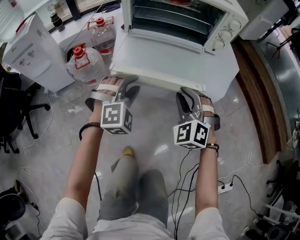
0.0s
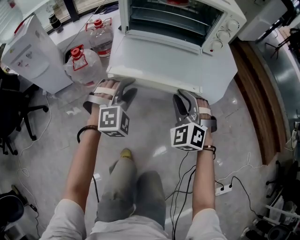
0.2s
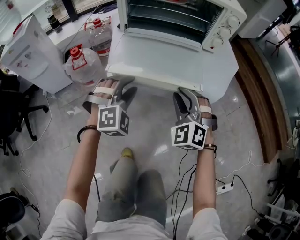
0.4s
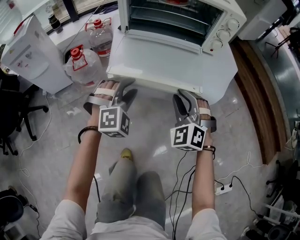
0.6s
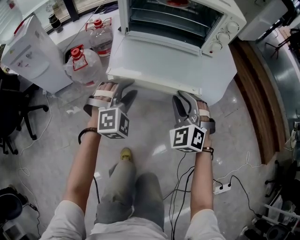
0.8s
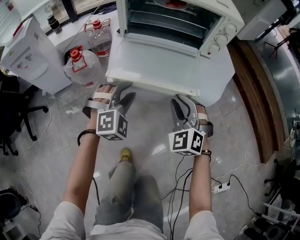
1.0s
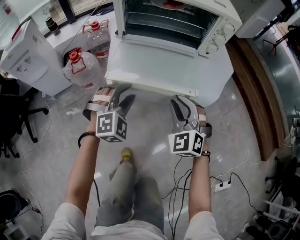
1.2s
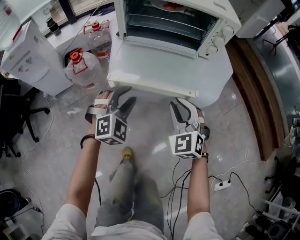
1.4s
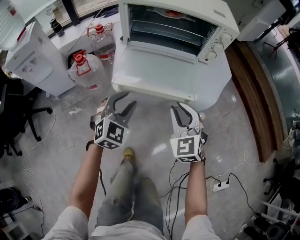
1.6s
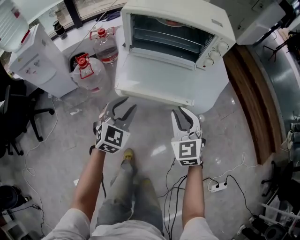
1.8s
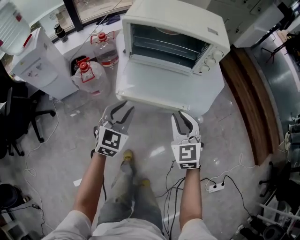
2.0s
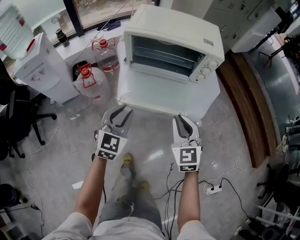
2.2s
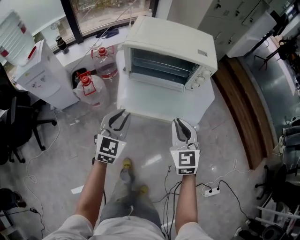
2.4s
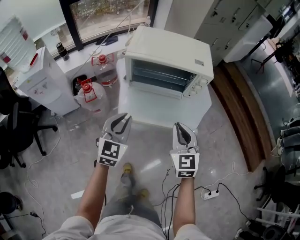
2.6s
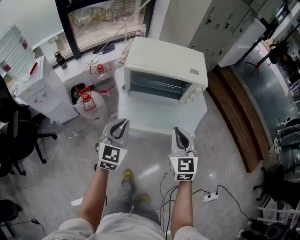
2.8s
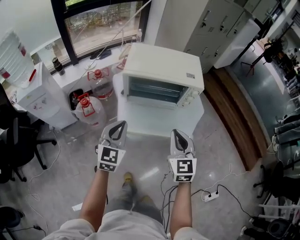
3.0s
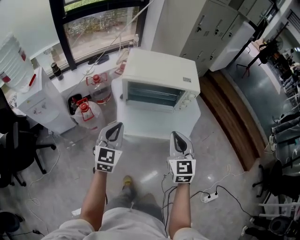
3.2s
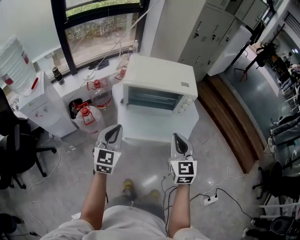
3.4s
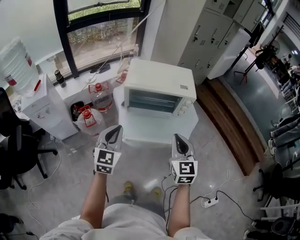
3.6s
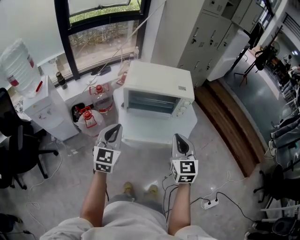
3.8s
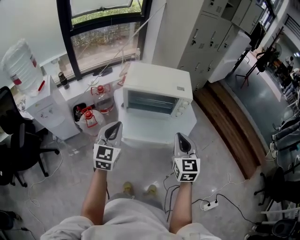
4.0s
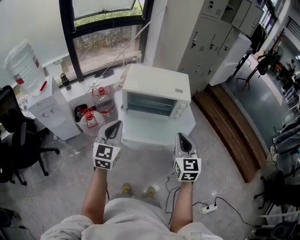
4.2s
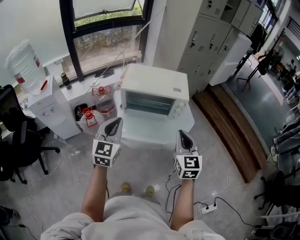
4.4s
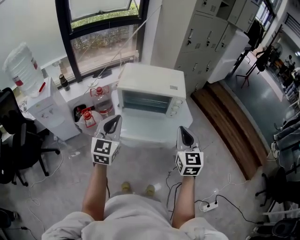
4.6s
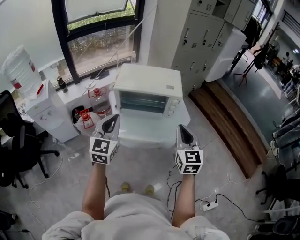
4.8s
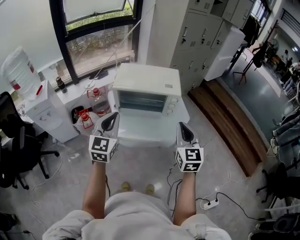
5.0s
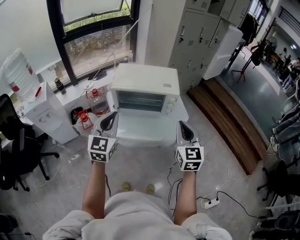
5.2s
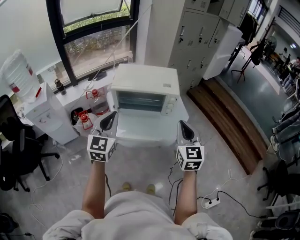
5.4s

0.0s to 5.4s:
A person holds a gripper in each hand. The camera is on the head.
0.0s to 1.4s: The grippers make only small movements.
1.4s to 2.8s: Both grippers move upward, roughly 25 cm. The left gripper turns by some 40 degrees, and closes its fingers. The right gripper turns by approximately 30 degrees.
2.8s to 4.0s: Both grippers move upward, roughly 10 cm.
4.0s to 5.4s: The left gripper moves to the right and upward, some 10 cm, while the right gripper moves to the right, approximately 10 cm.

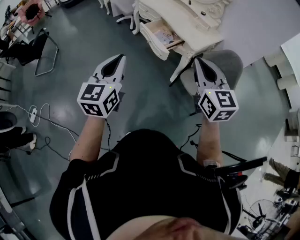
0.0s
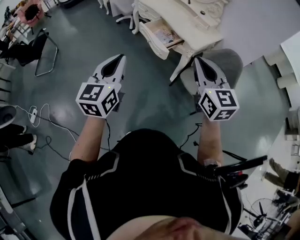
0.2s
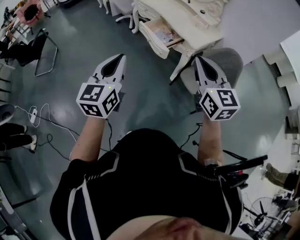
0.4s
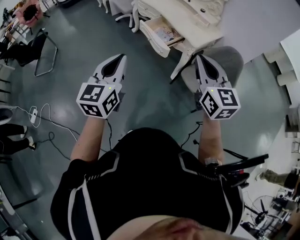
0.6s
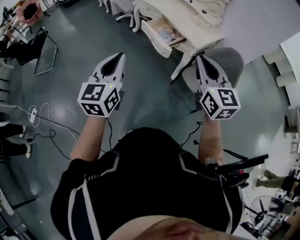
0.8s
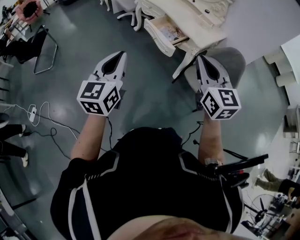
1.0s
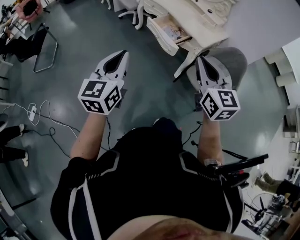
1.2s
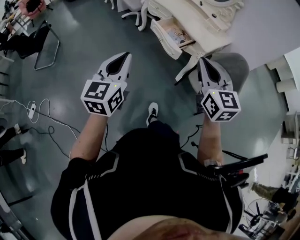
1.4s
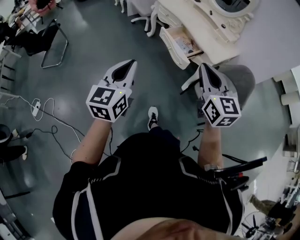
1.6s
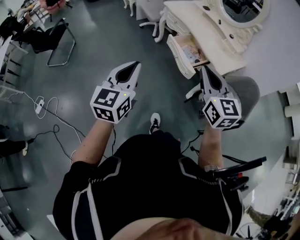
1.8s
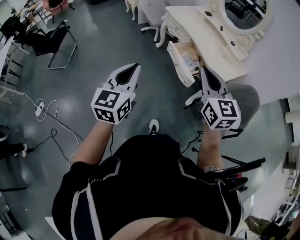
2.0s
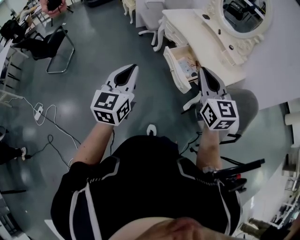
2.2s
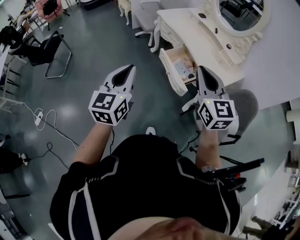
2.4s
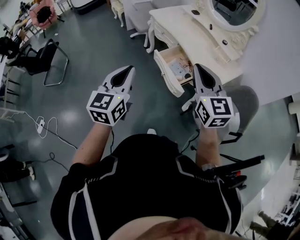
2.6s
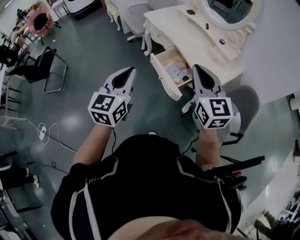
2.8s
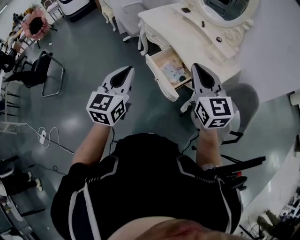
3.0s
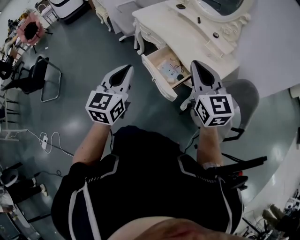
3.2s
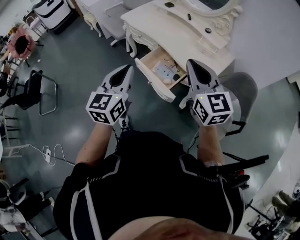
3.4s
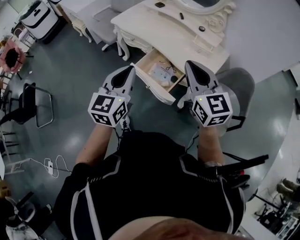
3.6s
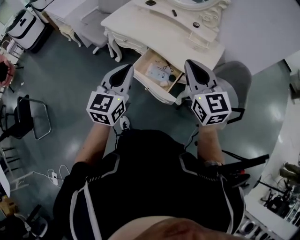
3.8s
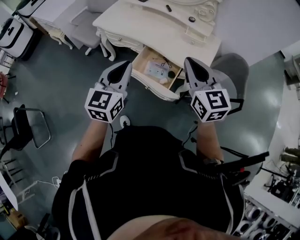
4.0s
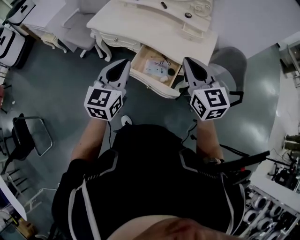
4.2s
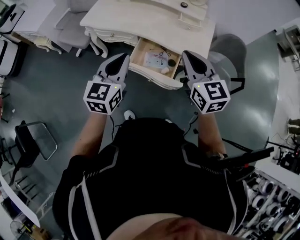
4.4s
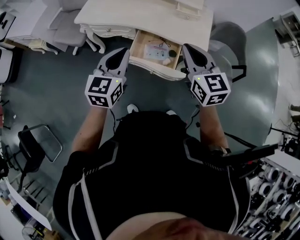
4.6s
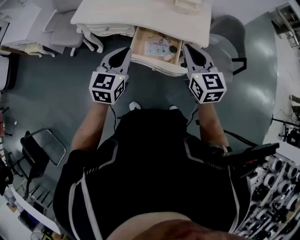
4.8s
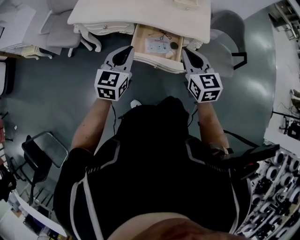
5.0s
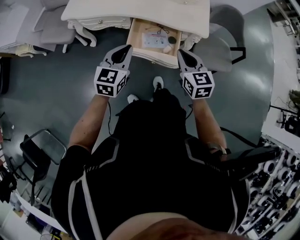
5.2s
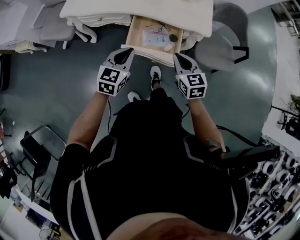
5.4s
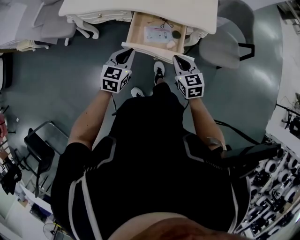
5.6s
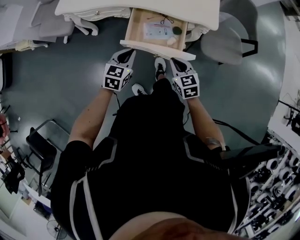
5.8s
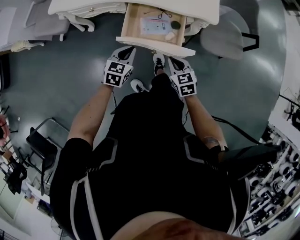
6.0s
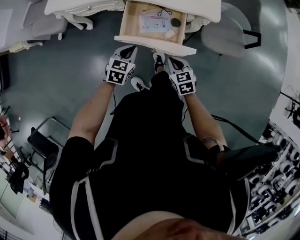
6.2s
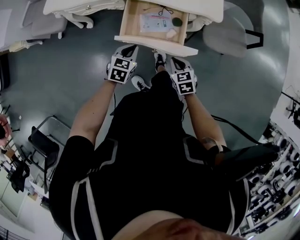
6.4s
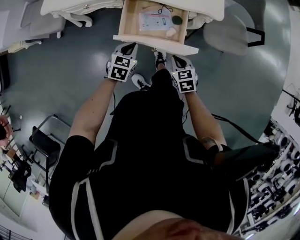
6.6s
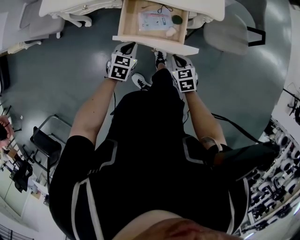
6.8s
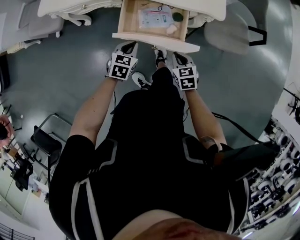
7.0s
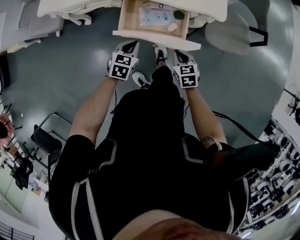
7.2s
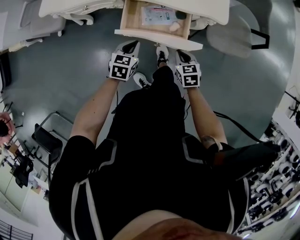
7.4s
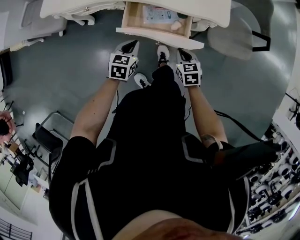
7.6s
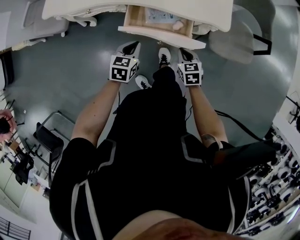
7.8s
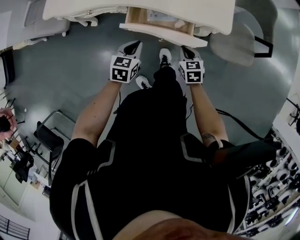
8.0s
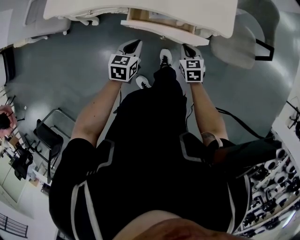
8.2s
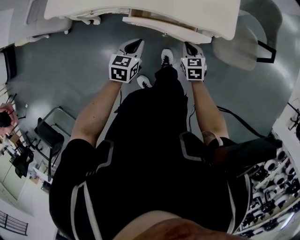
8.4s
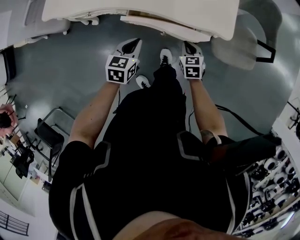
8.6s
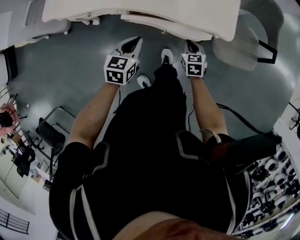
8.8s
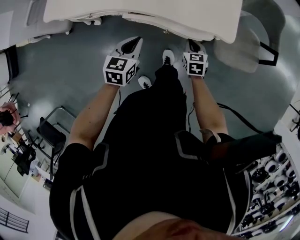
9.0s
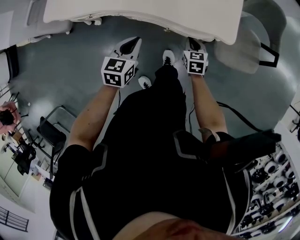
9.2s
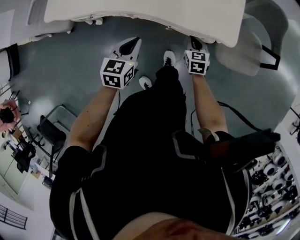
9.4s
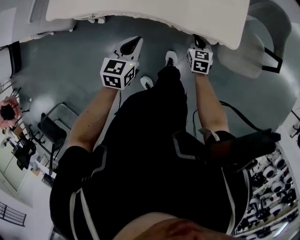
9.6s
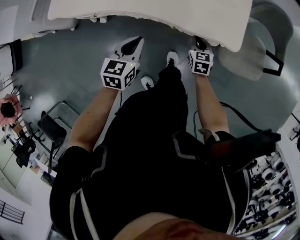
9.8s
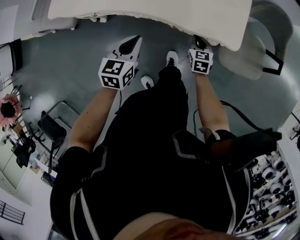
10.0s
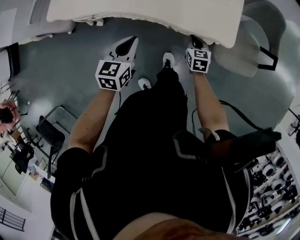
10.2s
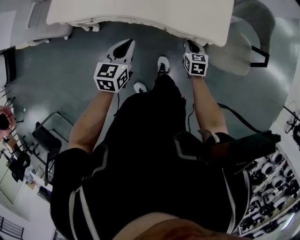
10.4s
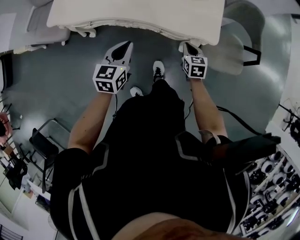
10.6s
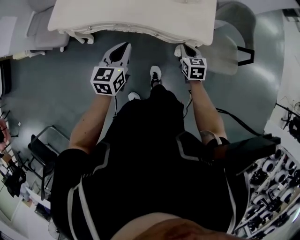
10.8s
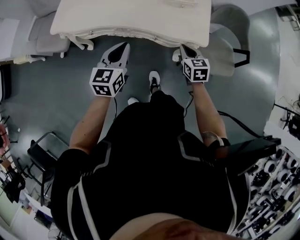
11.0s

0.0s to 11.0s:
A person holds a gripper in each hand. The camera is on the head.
0.0s to 1.6s: Both grippers move to the left, about 10 cm.
1.6s to 3.2s: Both grippers travel together forward and to the right, roughly 30 cm.
3.2s to 4.8s: The right gripper changes place by roughly 20 cm, and changes its angle by some 40 degrees; the left gripper ends up roughly 25 cm from where it was, and turns by approximately 40 degrees.
4.8s to 6.2s: The two grippers go approximately 30 cm downward. The right gripper angles its fingers downward, by about 30 degrees; the left gripper changes its angle by roughly 30 degrees.
6.2s to 7.8s: The grippers both shift forward by approximately 10 cm.
7.8s to 9.4s: The right gripper shifts some 15 cm forward. Meanwhile the left gripper goes some 10 cm forward and upward.
9.4s to 11.0s: The two grippers go some 15 cm upward.

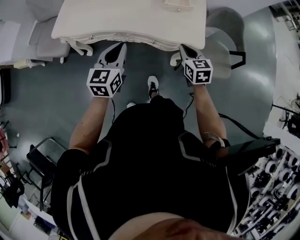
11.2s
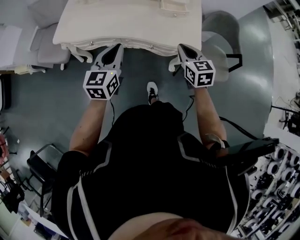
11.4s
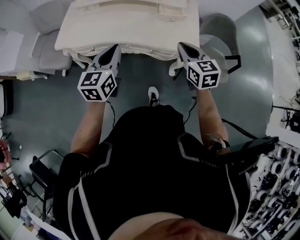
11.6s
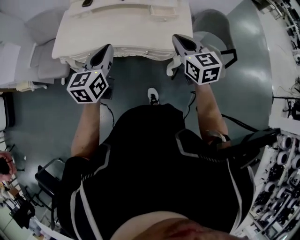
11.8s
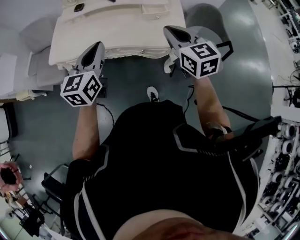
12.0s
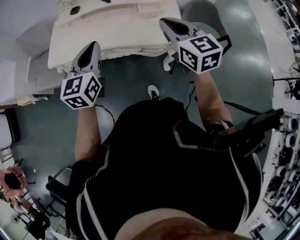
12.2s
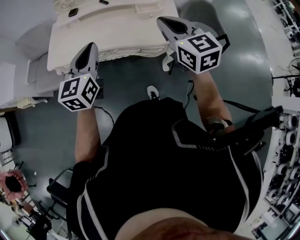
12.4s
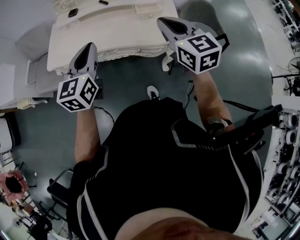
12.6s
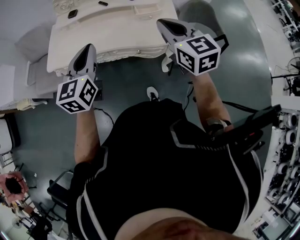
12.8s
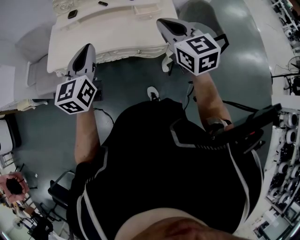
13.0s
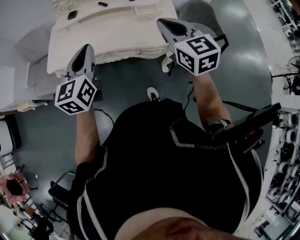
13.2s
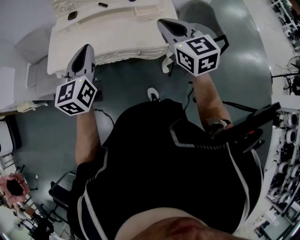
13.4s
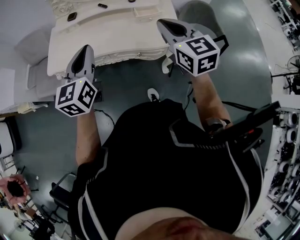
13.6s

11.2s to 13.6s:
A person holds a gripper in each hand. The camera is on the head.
11.2s to 12.4s: The left gripper heads upward, covering roughly 15 cm. The right gripper is displaced upward by approximately 25 cm, and rotates roughly 20 degrees.
12.4s to 13.6s: The grippers move only a little.

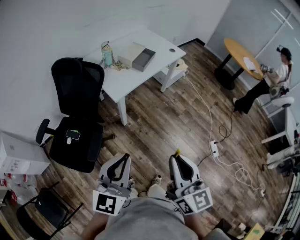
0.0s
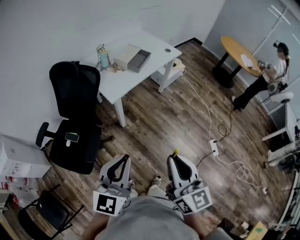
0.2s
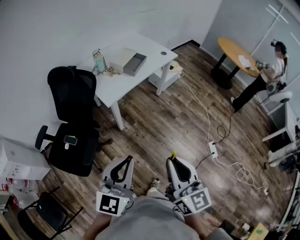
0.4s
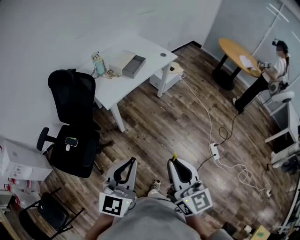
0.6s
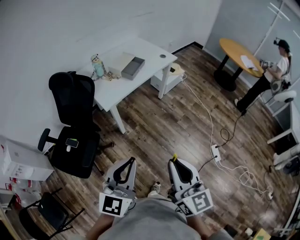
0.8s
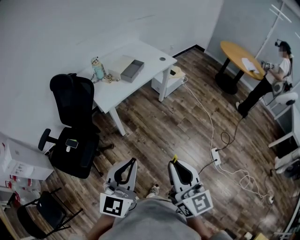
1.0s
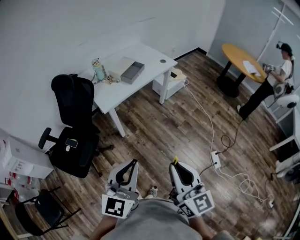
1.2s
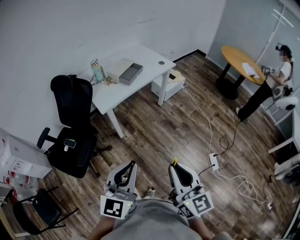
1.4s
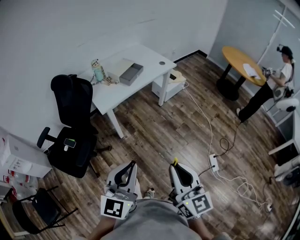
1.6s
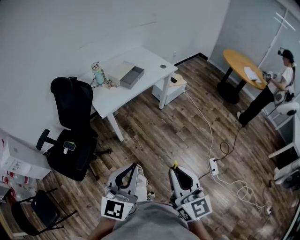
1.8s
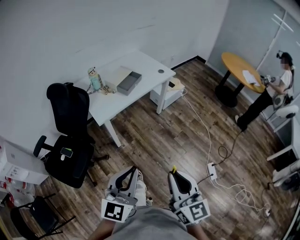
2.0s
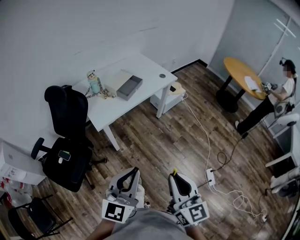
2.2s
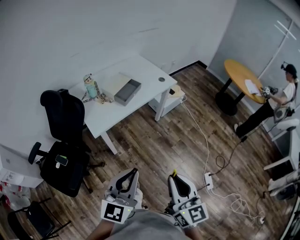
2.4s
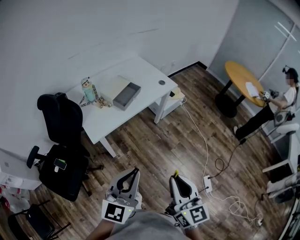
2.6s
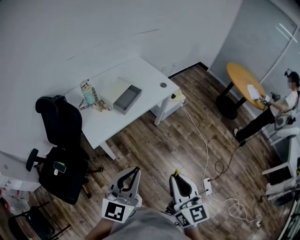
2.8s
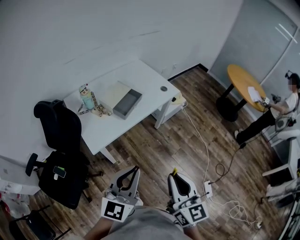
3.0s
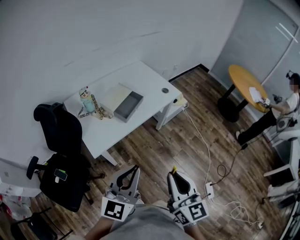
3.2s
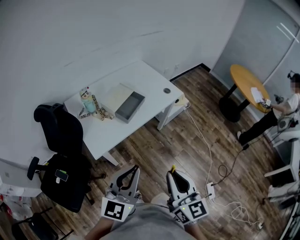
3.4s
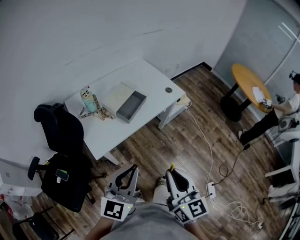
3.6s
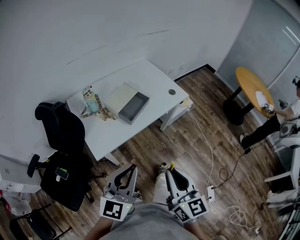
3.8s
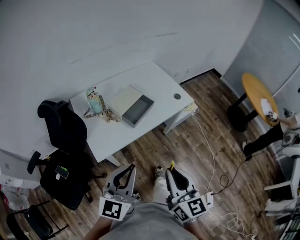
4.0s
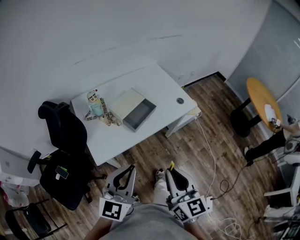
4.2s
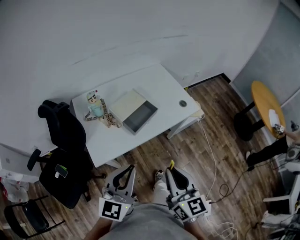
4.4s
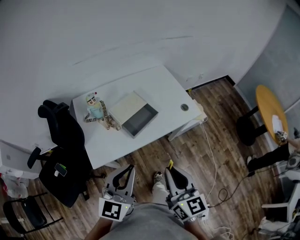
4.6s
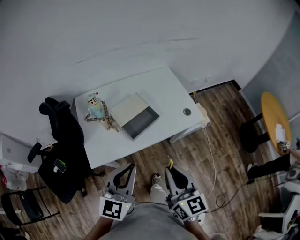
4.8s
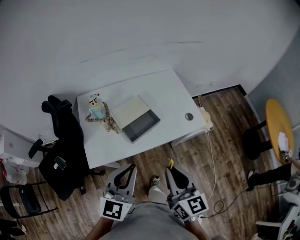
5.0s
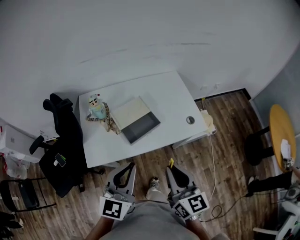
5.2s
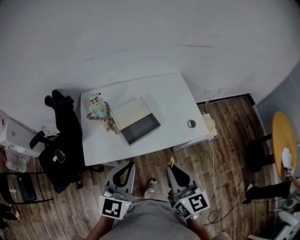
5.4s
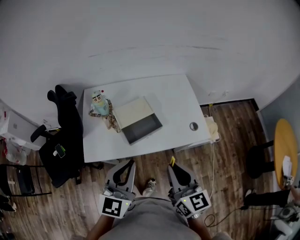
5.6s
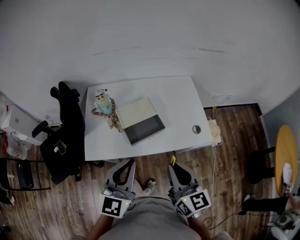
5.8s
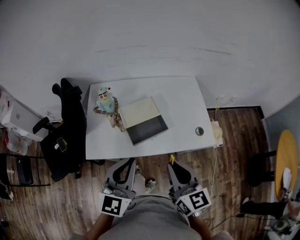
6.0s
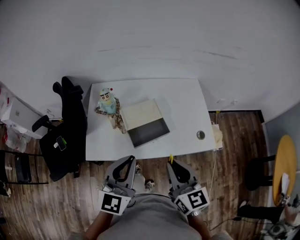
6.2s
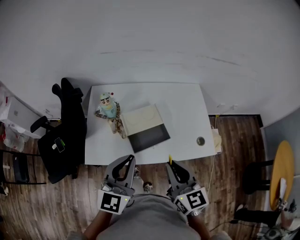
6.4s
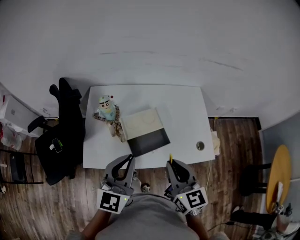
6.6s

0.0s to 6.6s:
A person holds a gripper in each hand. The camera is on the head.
0.0s to 1.6s: The grippers both shift to the right by some 20 cm.
1.6s to 3.2s: Both grippers move forward, roughly 30 cm.
3.2s to 5.0s: The two grippers go about 25 cm forward. The left gripper rotates approximately 20 degrees; the right gripper turns by about 20 degrees.
5.0s to 6.6s: The grippers both shift forward by roughly 15 cm. The right gripper swivels roughly 20 degrees.
